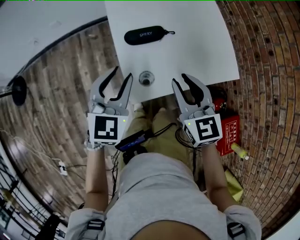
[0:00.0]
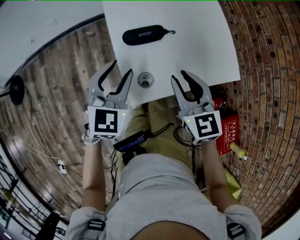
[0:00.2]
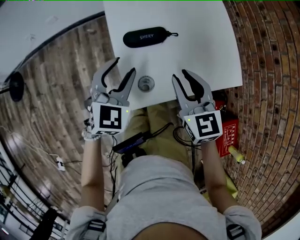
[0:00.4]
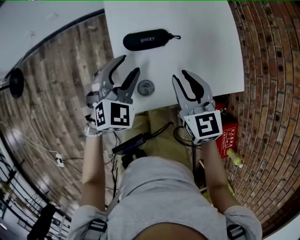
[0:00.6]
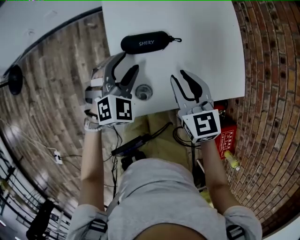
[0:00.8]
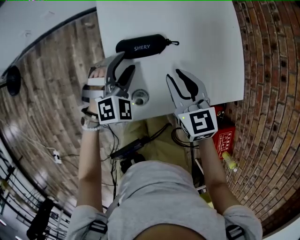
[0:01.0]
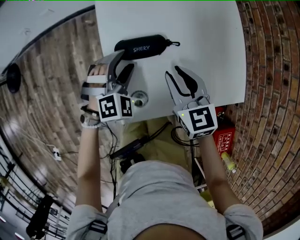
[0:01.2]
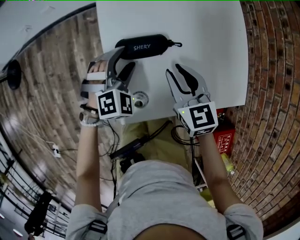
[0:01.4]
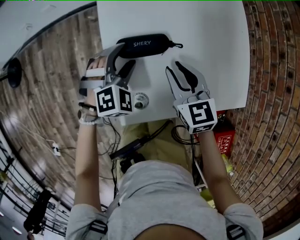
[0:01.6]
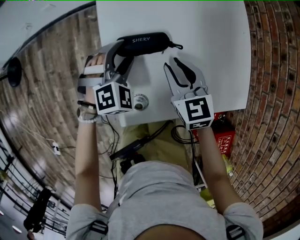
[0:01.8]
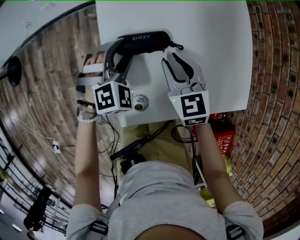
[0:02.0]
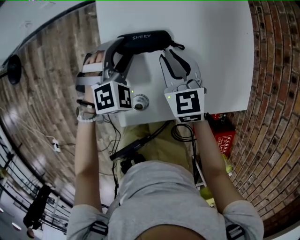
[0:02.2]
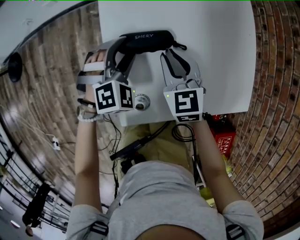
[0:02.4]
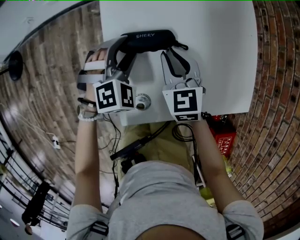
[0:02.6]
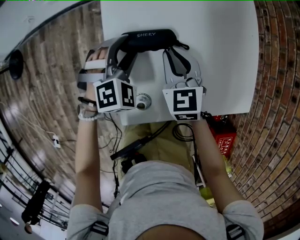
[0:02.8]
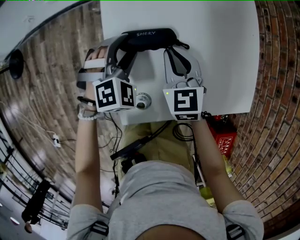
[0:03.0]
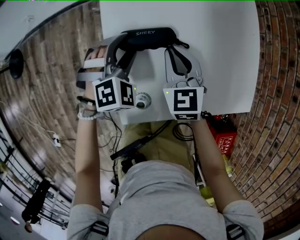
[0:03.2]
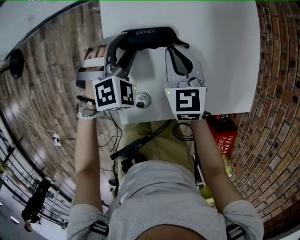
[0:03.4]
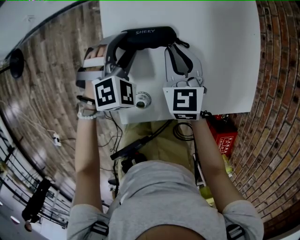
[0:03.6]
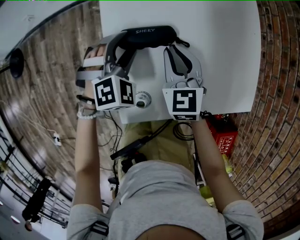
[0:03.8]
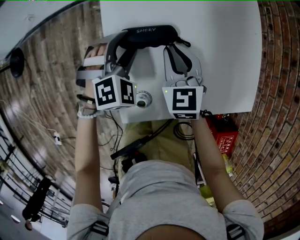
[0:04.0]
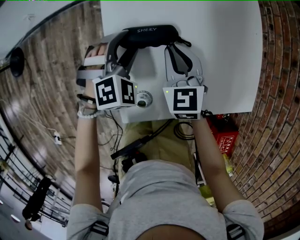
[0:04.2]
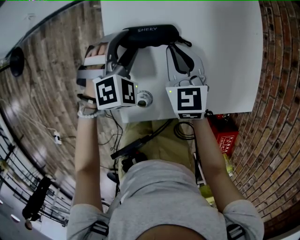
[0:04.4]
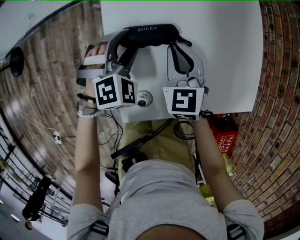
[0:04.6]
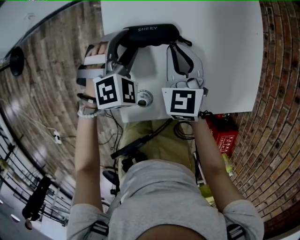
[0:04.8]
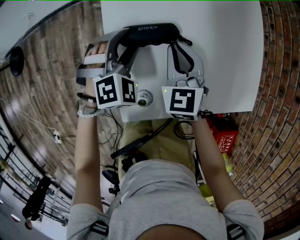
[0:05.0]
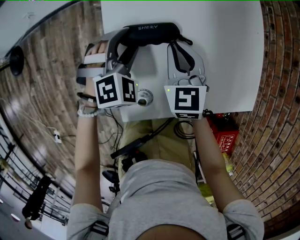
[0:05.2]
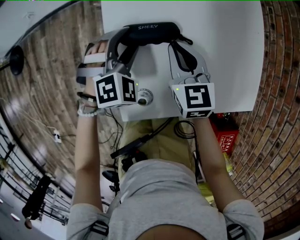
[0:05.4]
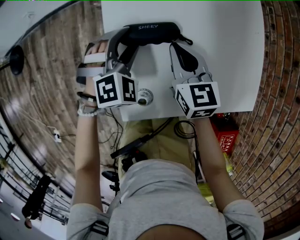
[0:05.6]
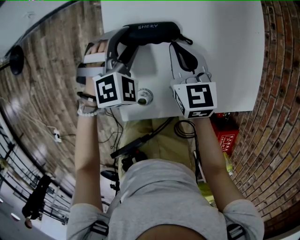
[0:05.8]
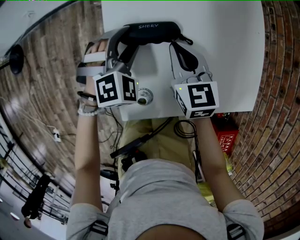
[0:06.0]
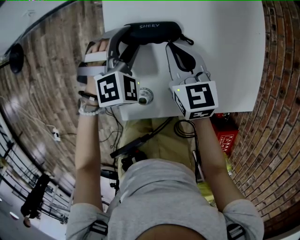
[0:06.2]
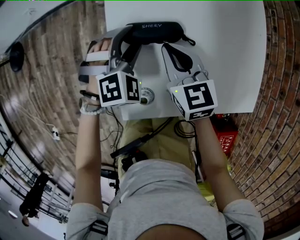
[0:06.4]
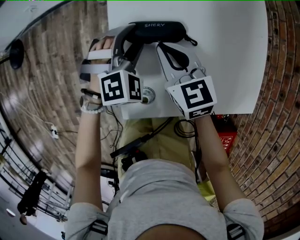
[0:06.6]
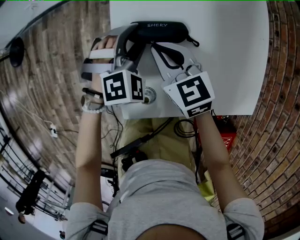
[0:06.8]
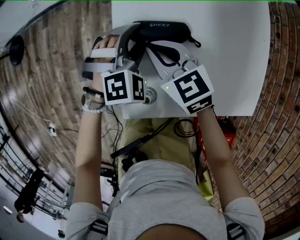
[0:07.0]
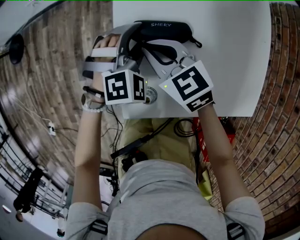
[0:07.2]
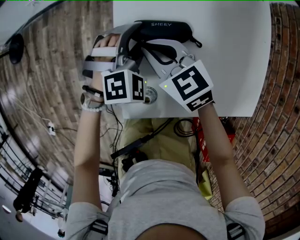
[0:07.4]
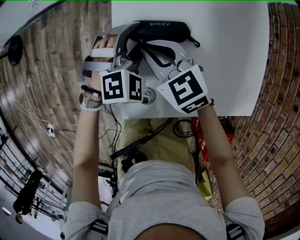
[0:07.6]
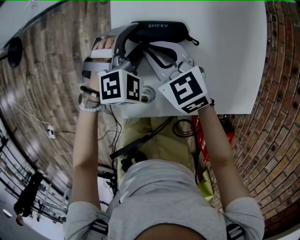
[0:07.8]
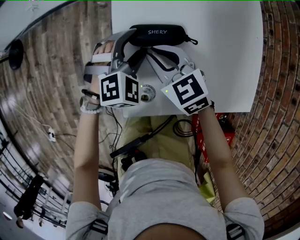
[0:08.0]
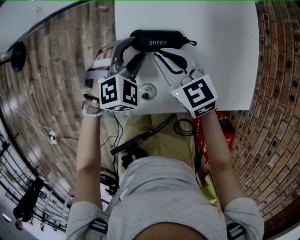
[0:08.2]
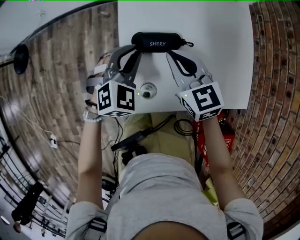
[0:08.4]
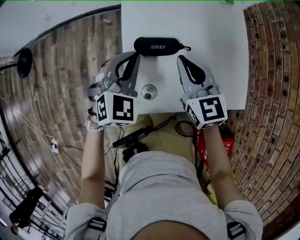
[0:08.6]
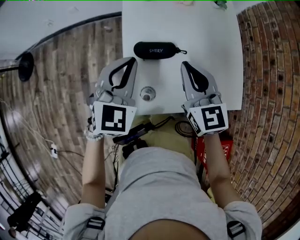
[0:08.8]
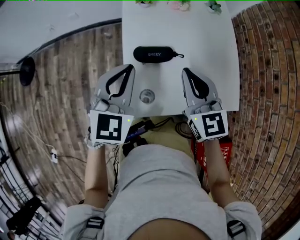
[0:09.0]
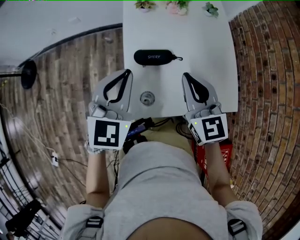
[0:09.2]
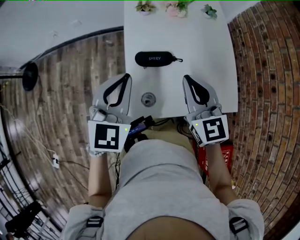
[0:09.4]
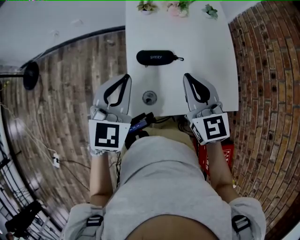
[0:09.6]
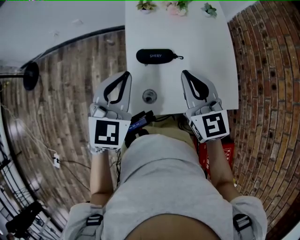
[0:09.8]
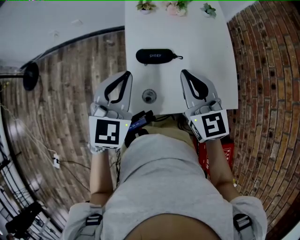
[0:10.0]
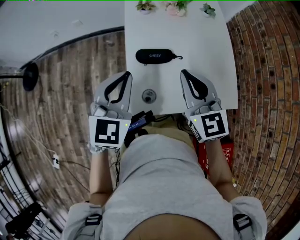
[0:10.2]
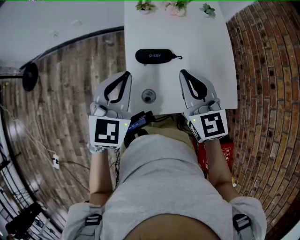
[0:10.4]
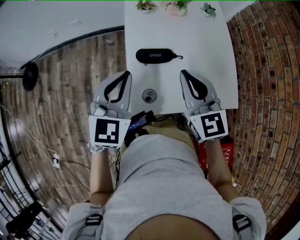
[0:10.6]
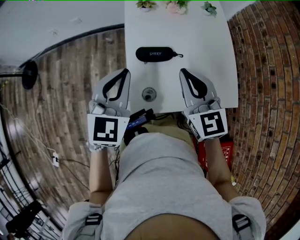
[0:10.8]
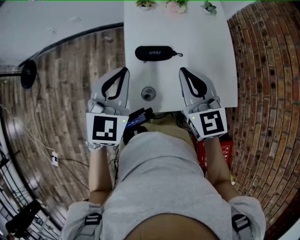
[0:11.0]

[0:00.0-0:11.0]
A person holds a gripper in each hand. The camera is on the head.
0:00.0 to 0:01.6: The left gripper goes some 20 cm downward and forward, changes its angle by approximately 40 degrees, and opens. Meanwhile the right gripper is displaced forward and downward by some 20 cm.
0:01.6 to 0:03.2: The right gripper moves forward, approximately 5 cm.
0:03.2 to 0:04.8: The grippers make only small movements.
0:06.2 to 0:07.8: The right gripper travels to the left by some 10 cm, and changes its angle by approximately 30 degrees.
0:07.8 to 0:09.4: The left gripper heads upward and backward, covering some 25 cm, swivels about 40 degrees, and closes. Meanwhile the right gripper shifts some 25 cm upward, to the right and backward, and rotates some 30 degrees.
0:09.4 to 0:11.0: There are only small adjustments of the grippers.

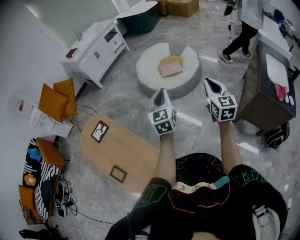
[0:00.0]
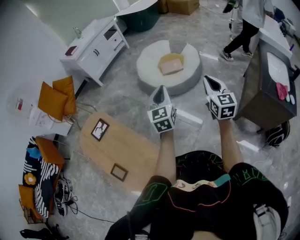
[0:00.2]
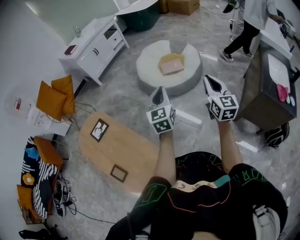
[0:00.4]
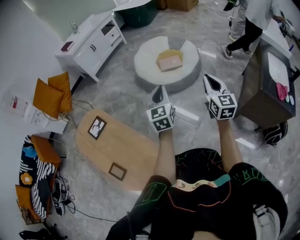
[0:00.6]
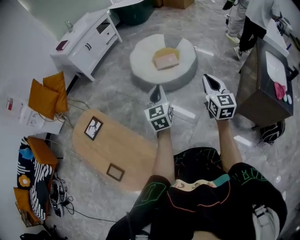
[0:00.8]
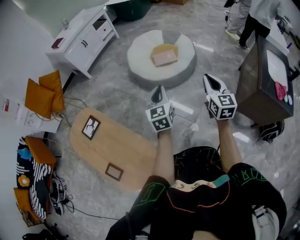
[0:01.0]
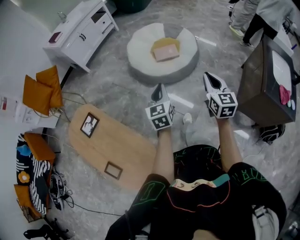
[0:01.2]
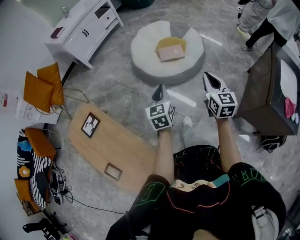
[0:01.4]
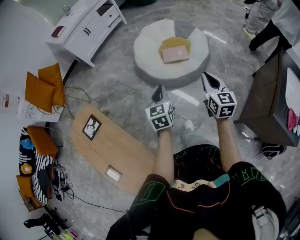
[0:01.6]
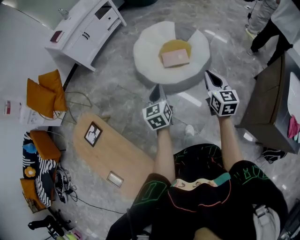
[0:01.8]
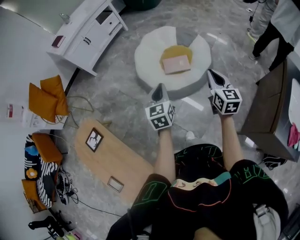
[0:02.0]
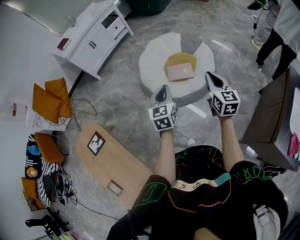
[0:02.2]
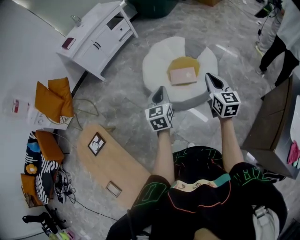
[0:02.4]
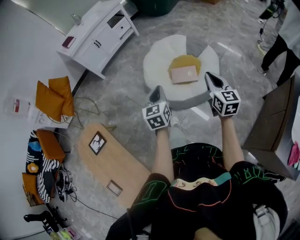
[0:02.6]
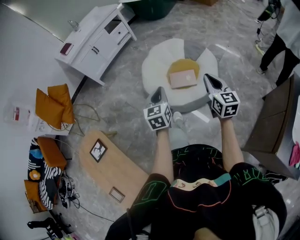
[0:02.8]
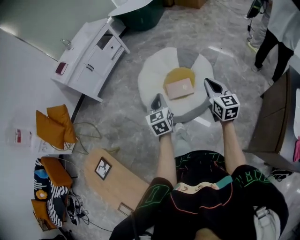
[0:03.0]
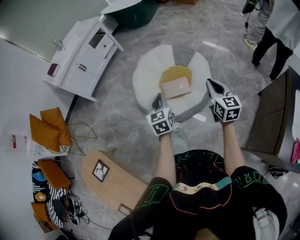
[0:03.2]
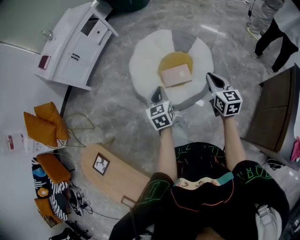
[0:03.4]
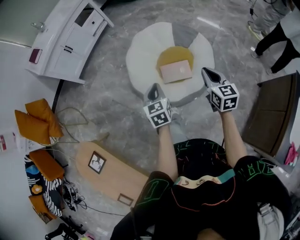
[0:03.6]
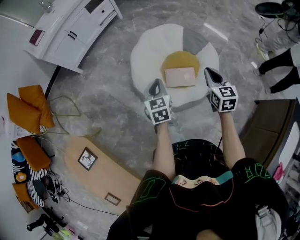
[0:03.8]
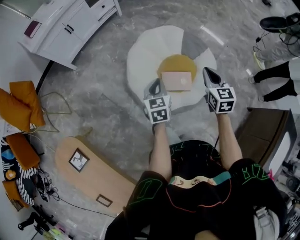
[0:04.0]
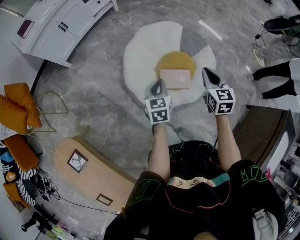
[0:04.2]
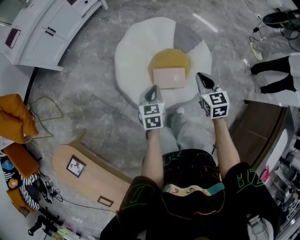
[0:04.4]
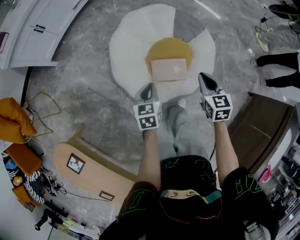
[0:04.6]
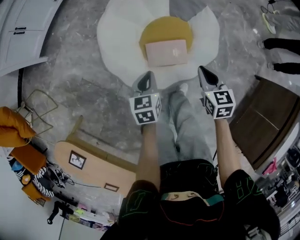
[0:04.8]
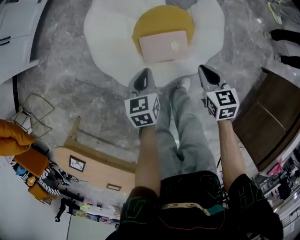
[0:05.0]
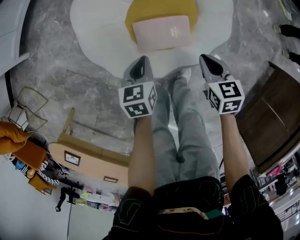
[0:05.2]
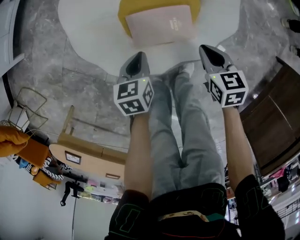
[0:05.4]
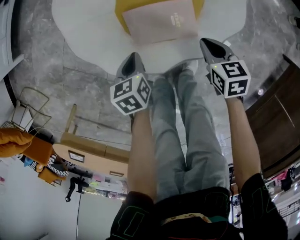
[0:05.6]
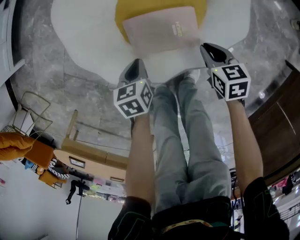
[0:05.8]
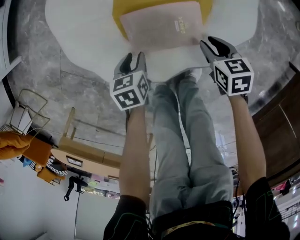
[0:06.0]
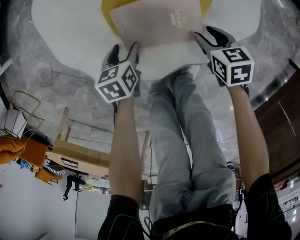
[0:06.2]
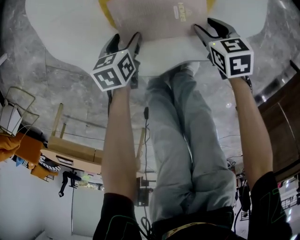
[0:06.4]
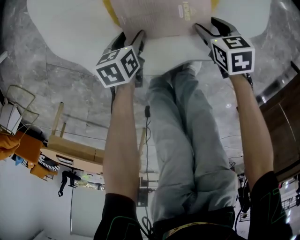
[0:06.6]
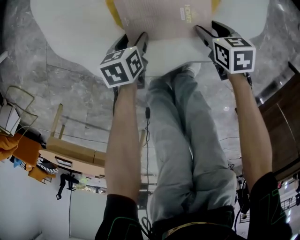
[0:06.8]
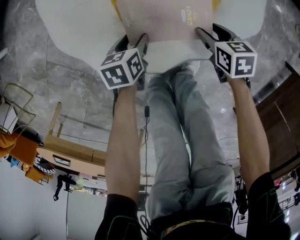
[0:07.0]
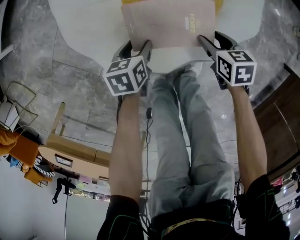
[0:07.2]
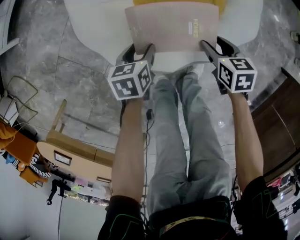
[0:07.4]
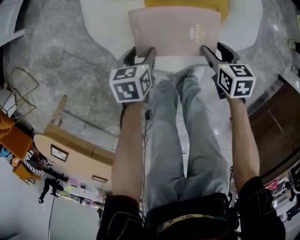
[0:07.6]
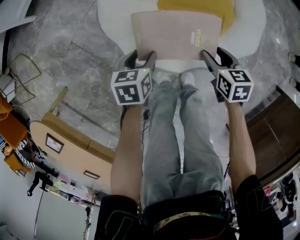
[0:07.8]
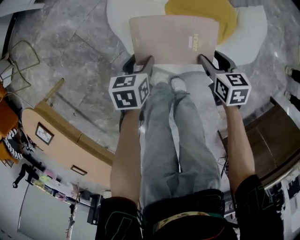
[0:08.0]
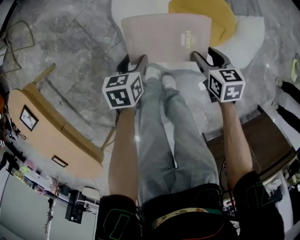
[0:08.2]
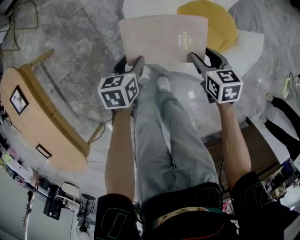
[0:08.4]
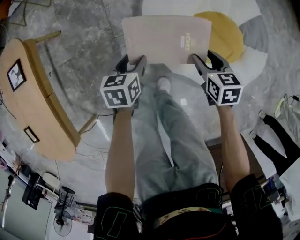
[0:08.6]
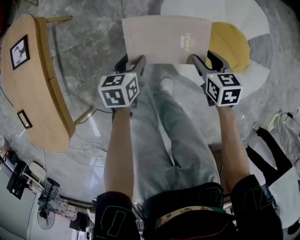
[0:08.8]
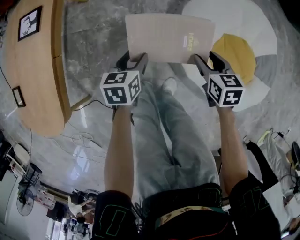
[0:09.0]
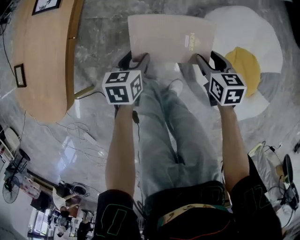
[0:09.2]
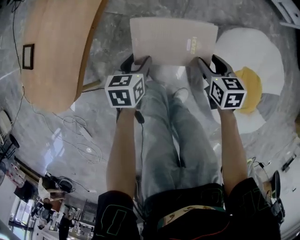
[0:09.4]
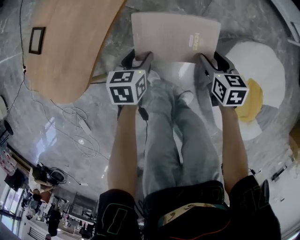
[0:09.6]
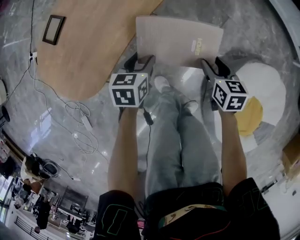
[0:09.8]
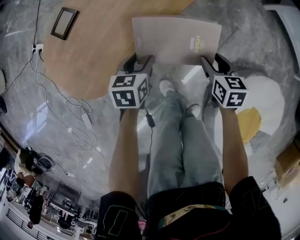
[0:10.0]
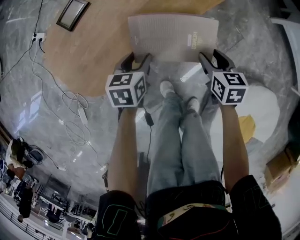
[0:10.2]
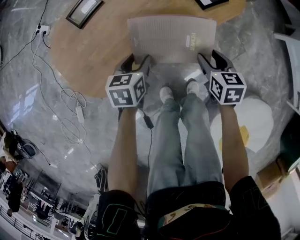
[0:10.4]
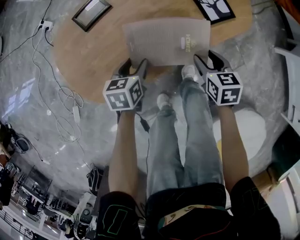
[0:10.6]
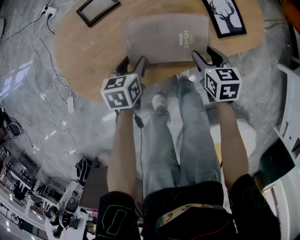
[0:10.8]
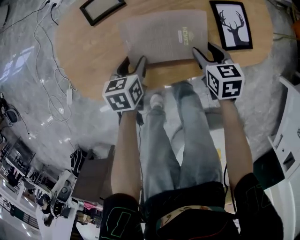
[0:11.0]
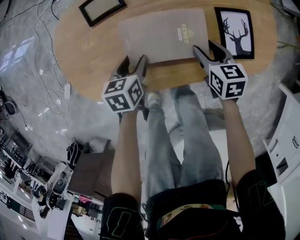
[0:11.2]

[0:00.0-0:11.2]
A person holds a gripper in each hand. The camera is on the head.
0:00.0 to 0:01.6: The left gripper goes approximately 25 cm forward and downward; the right gripper is displaced forward by approximately 25 cm.
0:01.6 to 0:03.2: The right gripper goes some 30 cm forward and to the right; the left gripper is displaced forward by some 30 cm.
0:03.2 to 0:04.8: Both grippers travel together downward and forward, approximately 35 cm. The left gripper turns by about 20 degrees; the right gripper points its fingers approximately 30 degrees further downward.
0:04.8 to 0:06.4: The grippers both shift downward by approximately 40 cm. The left gripper opens its fingers. The right gripper turns by approximately 20 degrees, and opens up.
0:06.4 to 0:08.0: The right gripper moves upward and to the left, roughly 25 cm. The left gripper moves upward, to the left and backward, some 25 cm.
0:08.0 to 0:09.6: Both grippers are carried approximately 50 cm. The right gripper rolls counterclockwise, seen from behind, by roughly 50 degrees; the left gripper swivels some 70 degrees.
0:09.6 to 0:11.2: The left gripper changes place by approximately 35 cm, and turns by approximately 50 degrees. Meanwhile the right gripper moves roughly 50 cm, and turns by approximately 50 degrees.

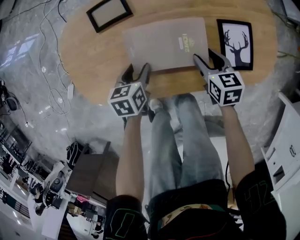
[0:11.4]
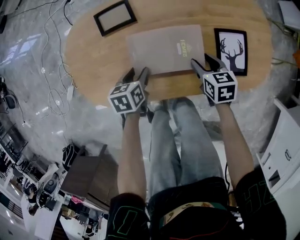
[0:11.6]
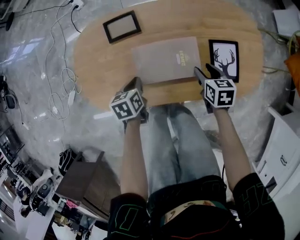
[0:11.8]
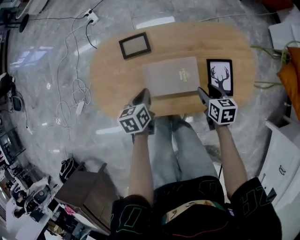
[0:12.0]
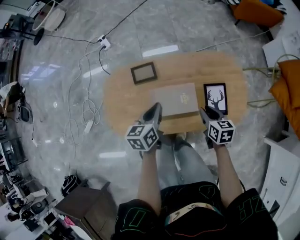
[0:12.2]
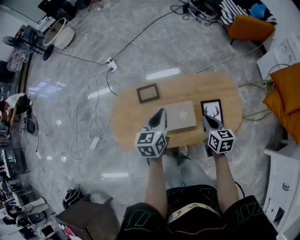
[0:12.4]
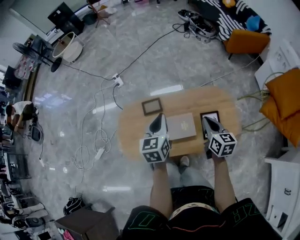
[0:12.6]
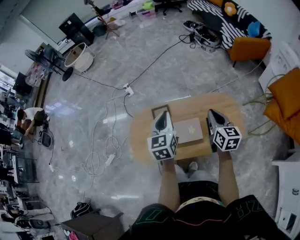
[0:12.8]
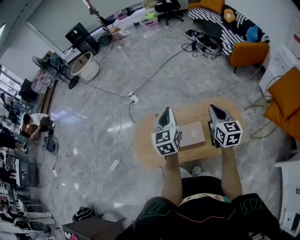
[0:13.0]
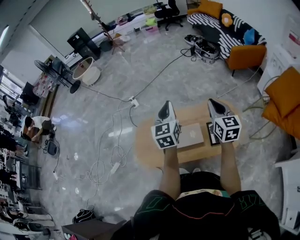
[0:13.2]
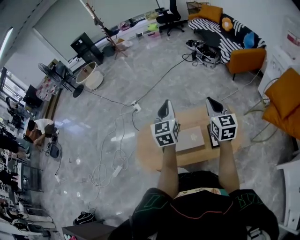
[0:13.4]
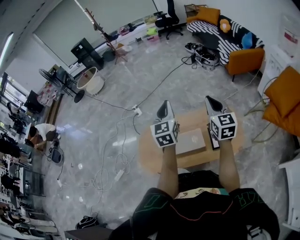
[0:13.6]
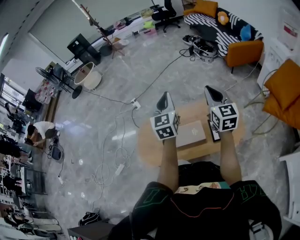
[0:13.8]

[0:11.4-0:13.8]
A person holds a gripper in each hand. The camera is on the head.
0:11.4 to 0:12.6: The two grippers go approximately 35 cm upward. The right gripper swivels about 30 degrees, and closes its fingers. The left gripper angles its fingers upward, by about 30 degrees, and closes up.
0:12.6 to 0:13.8: The grippers both shift upward by some 20 cm. The left gripper rotates approximately 20 degrees, while the right gripper swivels approximately 30 degrees.
